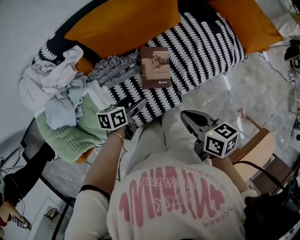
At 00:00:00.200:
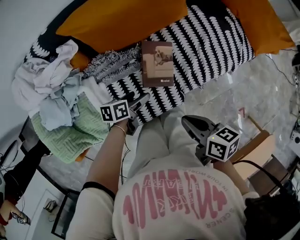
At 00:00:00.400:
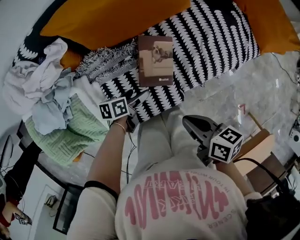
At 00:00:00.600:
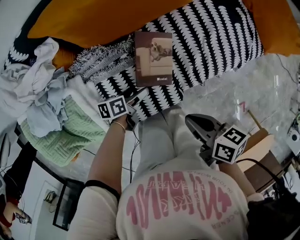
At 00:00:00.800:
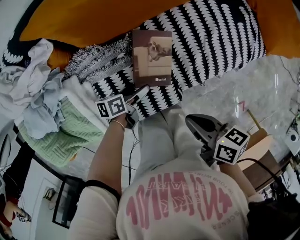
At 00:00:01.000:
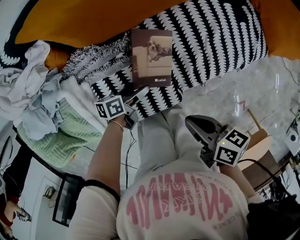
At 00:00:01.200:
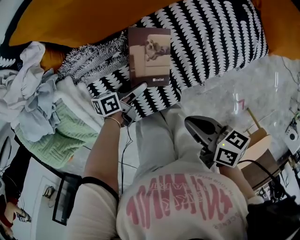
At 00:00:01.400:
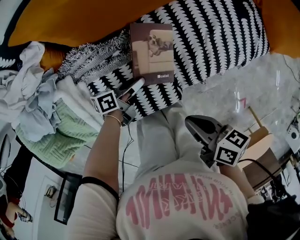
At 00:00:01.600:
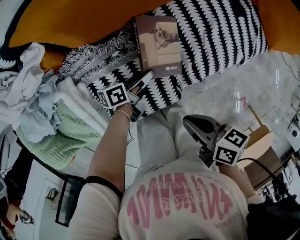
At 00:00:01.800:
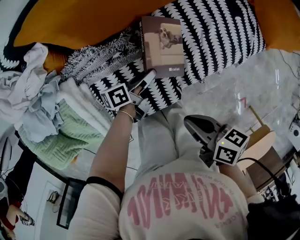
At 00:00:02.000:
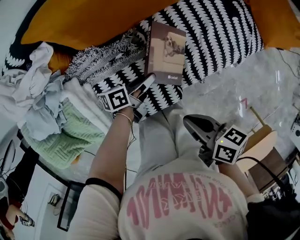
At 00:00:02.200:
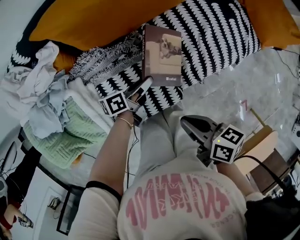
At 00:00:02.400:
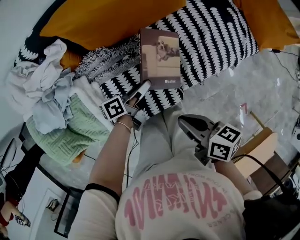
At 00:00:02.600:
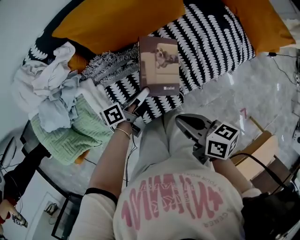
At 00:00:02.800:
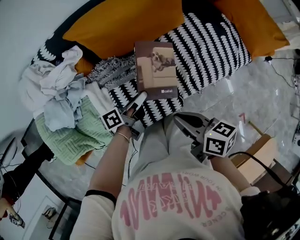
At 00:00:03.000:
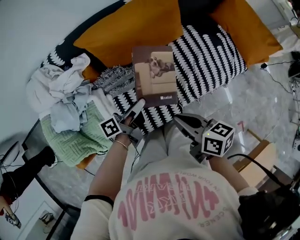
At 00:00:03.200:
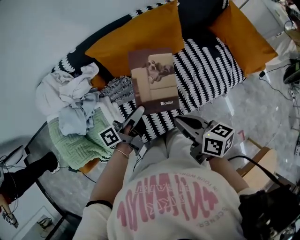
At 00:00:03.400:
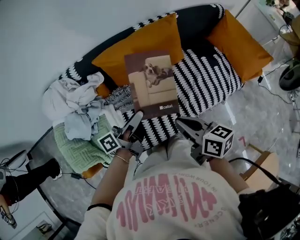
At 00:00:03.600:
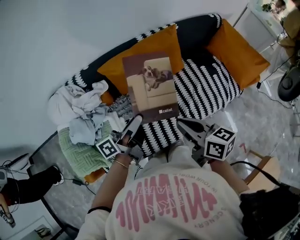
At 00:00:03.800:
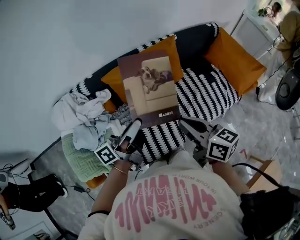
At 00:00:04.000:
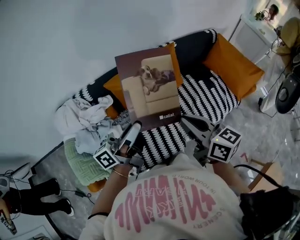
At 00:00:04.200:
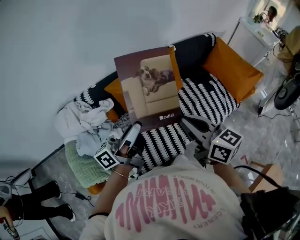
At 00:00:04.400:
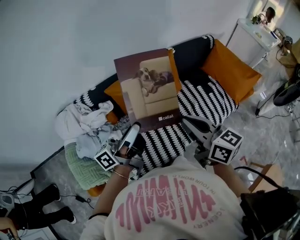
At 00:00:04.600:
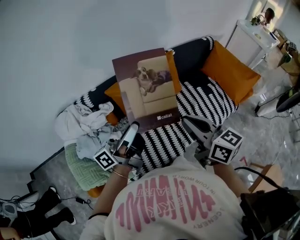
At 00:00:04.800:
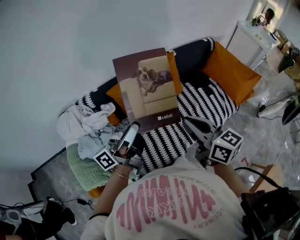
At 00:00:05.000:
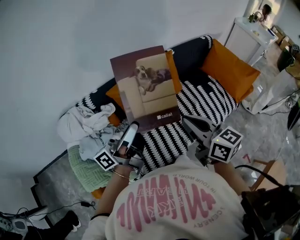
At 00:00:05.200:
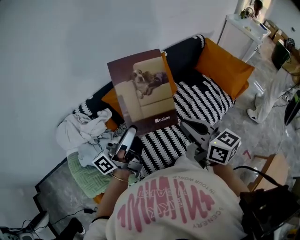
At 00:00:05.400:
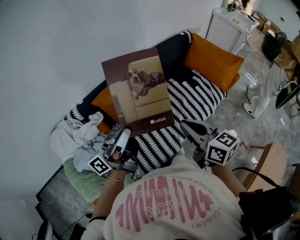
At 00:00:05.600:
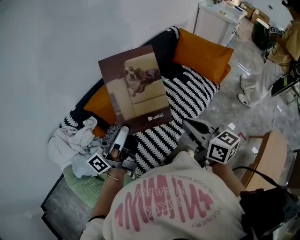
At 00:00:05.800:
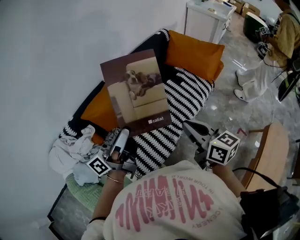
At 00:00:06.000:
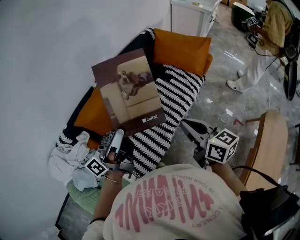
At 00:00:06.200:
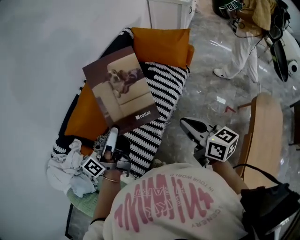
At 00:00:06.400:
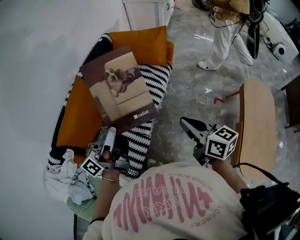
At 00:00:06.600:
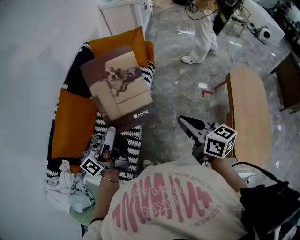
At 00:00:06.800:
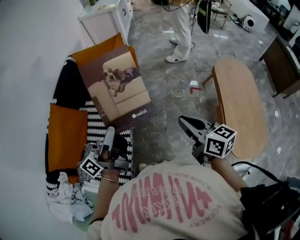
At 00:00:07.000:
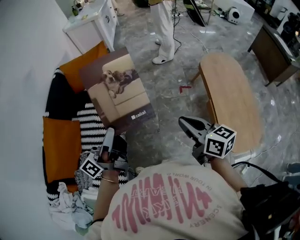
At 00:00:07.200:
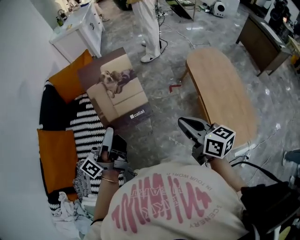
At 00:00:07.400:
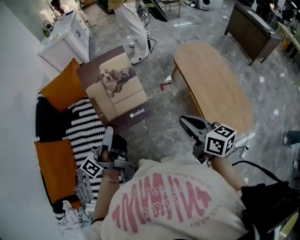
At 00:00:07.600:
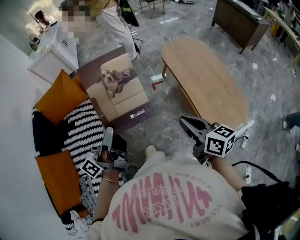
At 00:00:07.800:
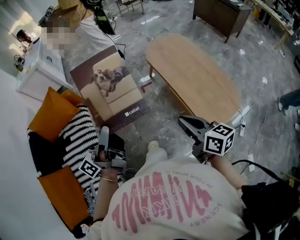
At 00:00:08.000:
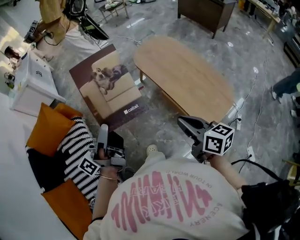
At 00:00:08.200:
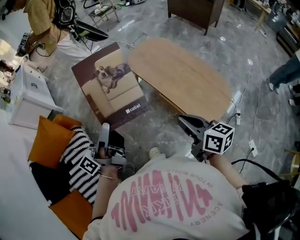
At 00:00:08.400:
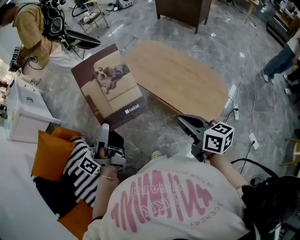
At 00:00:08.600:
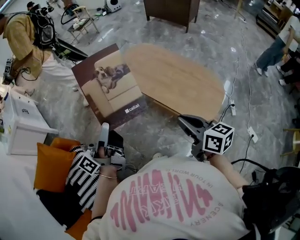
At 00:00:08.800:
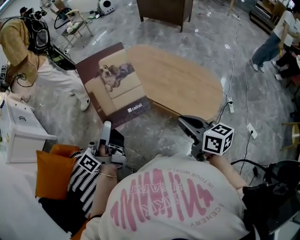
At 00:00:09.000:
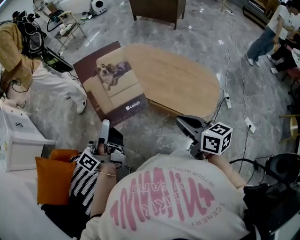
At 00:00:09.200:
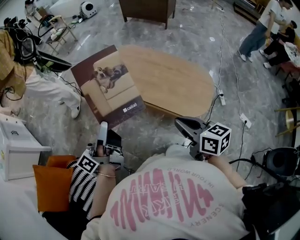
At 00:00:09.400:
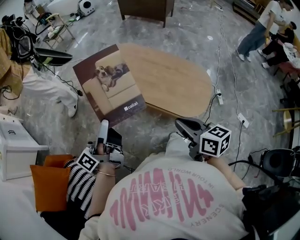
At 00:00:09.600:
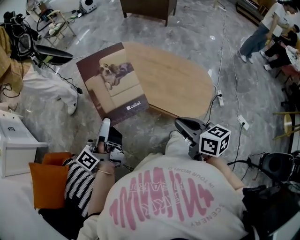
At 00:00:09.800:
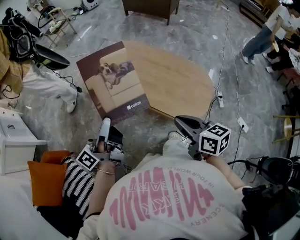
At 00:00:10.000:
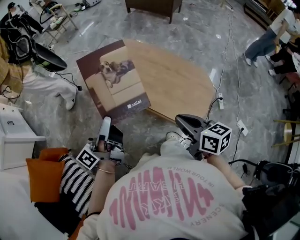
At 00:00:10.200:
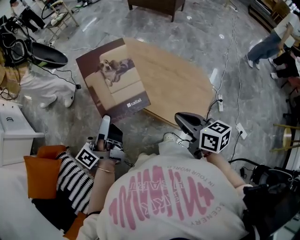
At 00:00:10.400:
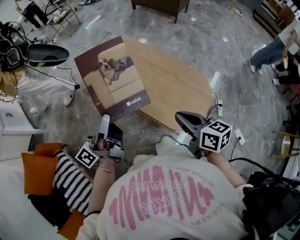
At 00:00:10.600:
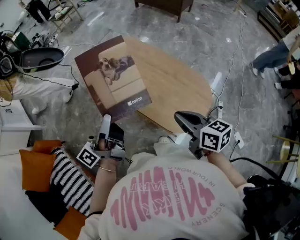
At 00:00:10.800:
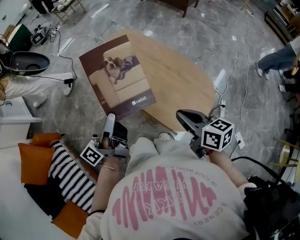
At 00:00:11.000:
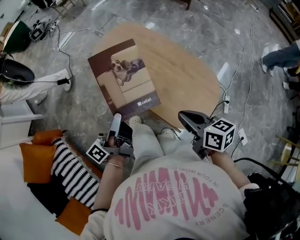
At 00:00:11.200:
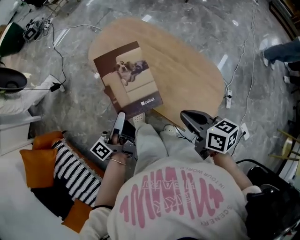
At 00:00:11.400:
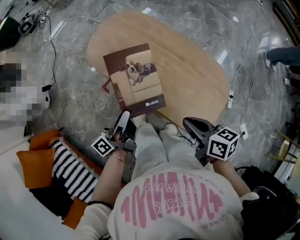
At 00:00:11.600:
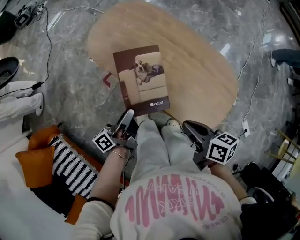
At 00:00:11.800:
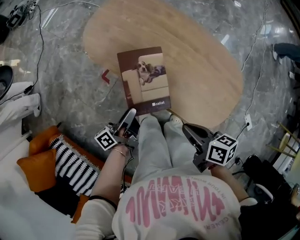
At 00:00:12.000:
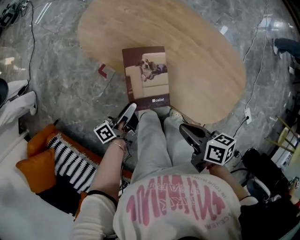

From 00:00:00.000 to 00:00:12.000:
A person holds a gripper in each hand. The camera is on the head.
From 00:00:00.000 to 00:00:01.600: The left gripper shifts roughly 15 cm downward, to the right and forward, turns by some 30 degrees, and closes; the right gripper travels downward by some 10 cm.
From 00:00:01.600 to 00:00:03.000: The right gripper shifts about 10 cm upward, and rotates about 20 degrees. Meanwhile the left gripper heads upward, covering approximately 20 cm, and turns by approximately 20 degrees.
From 00:00:03.000 to 00:00:04.400: The grippers both shift upward by roughly 25 cm. The right gripper rotates about 30 degrees, while the left gripper turns by some 40 degrees.
From 00:00:04.400 to 00:00:06.000: The right gripper ends up roughly 10 cm from where it was, and swivels roughly 40 degrees, while the left gripper travels upward by about 10 cm, and rotates some 30 degrees.
From 00:00:06.000 to 00:00:07.600: The two grippers travel together, roughly 40 cm. The right gripper rotates about 60 degrees; the left gripper turns by roughly 50 degrees.
From 00:00:07.600 to 00:00:09.000: The left gripper shifts by roughly 25 cm, and turns by approximately 40 degrees. The right gripper moves about 10 cm, and swivels about 40 degrees.
From 00:00:09.000 to 00:00:10.400: Both grippers move to the right and forward, roughly 15 cm.
From 00:00:10.400 to 00:00:12.000: The right gripper shifts about 20 cm downward and to the left, and changes its angle by some 30 degrees. Meanwhile the left gripper moves downward and forward, some 30 cm, and changes its angle by approximately 30 degrees.

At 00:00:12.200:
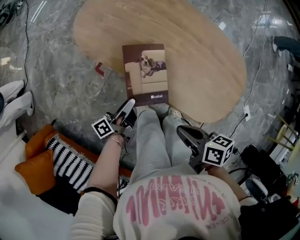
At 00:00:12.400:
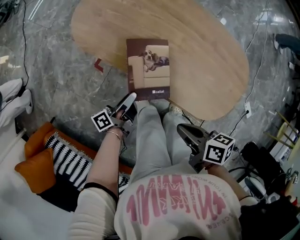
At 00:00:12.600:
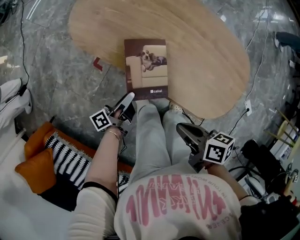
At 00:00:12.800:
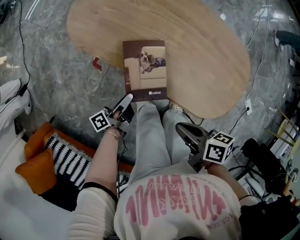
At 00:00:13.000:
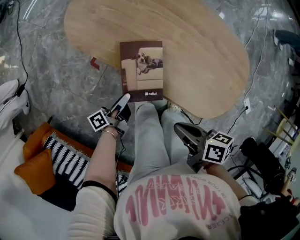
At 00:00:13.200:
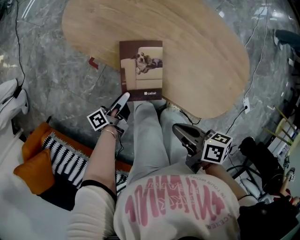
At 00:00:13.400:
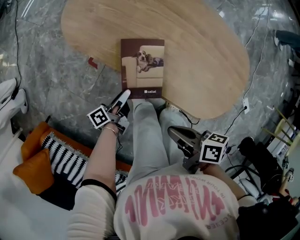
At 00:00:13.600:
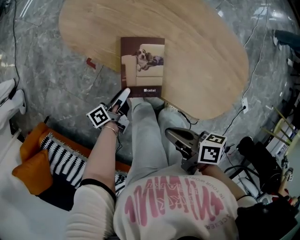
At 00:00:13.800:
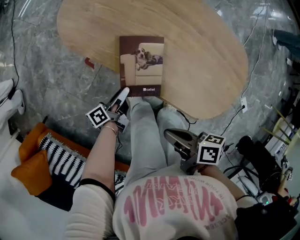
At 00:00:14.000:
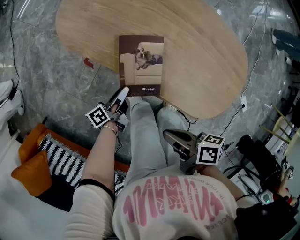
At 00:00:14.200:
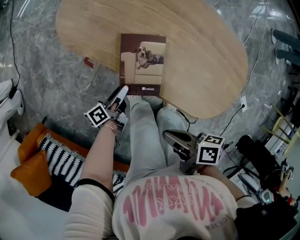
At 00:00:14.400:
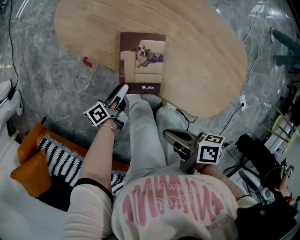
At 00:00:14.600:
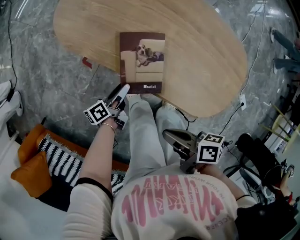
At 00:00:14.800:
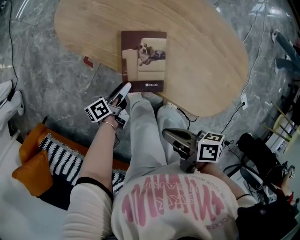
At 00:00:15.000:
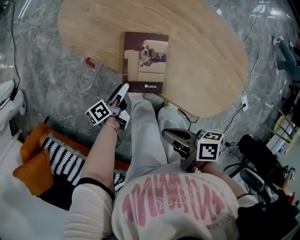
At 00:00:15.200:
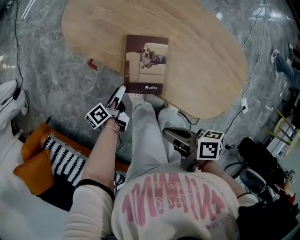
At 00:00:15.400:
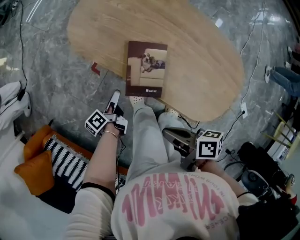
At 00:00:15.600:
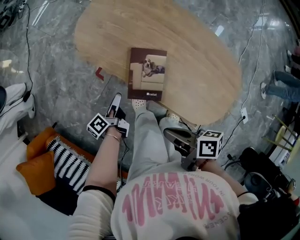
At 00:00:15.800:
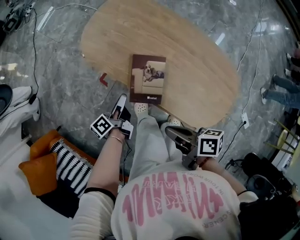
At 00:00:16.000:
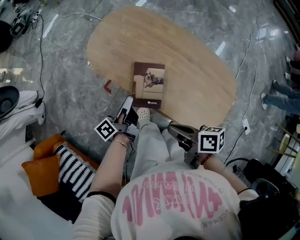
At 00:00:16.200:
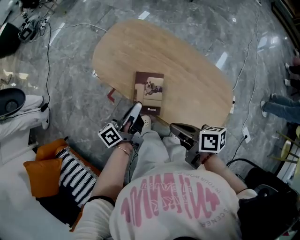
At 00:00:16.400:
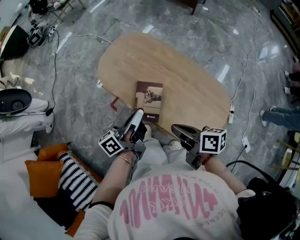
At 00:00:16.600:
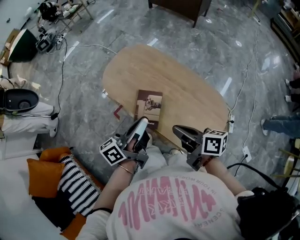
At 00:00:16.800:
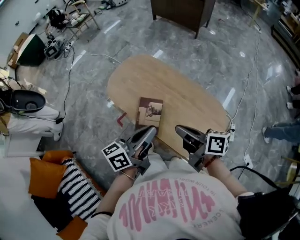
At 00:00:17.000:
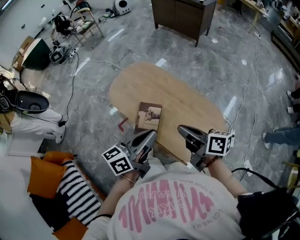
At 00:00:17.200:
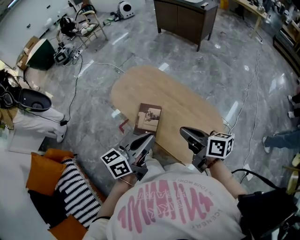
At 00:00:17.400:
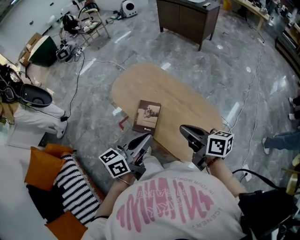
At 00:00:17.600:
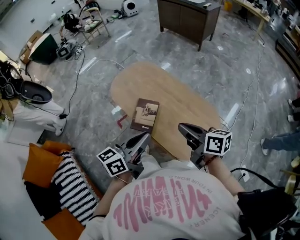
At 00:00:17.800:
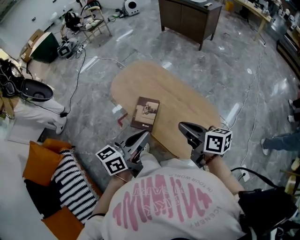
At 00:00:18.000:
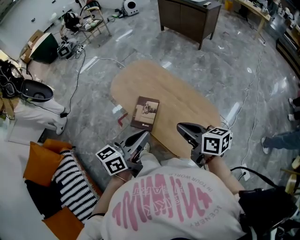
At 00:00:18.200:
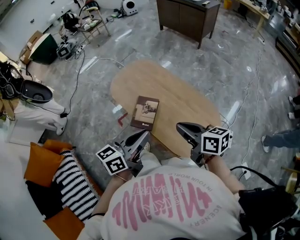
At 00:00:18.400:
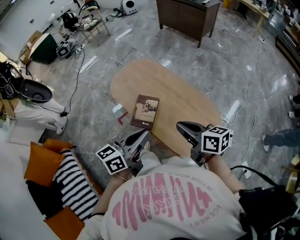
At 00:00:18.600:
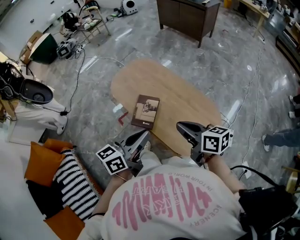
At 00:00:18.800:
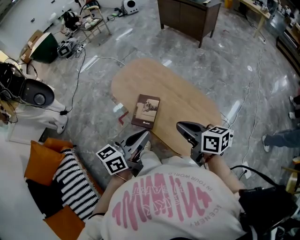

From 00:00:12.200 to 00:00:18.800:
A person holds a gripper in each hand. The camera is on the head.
From 00:00:12.200 to 00:00:13.800: The left gripper moves downward, some 5 cm.
From 00:00:13.800 to 00:00:15.400: The left gripper moves to the left, roughly 5 cm, and rotates about 20 degrees.
From 00:00:15.400 to 00:00:17.200: The left gripper shifts roughly 40 cm upward, to the right and backward, rotates around the line of its fingers by approximately 50 degrees, clockwise from behind, and closes up. Meanwhile the right gripper is displaced to the right and upward by approximately 25 cm, and changes its angle by approximately 40 degrees.
From 00:00:17.200 to 00:00:18.800: There are only small adjustments of the grippers.

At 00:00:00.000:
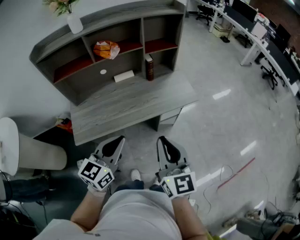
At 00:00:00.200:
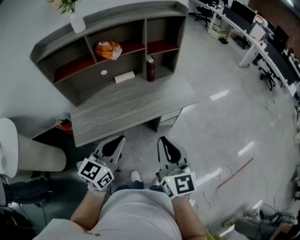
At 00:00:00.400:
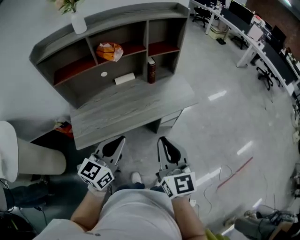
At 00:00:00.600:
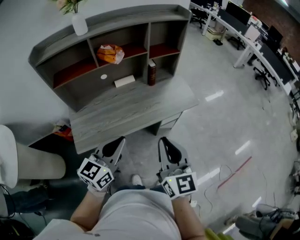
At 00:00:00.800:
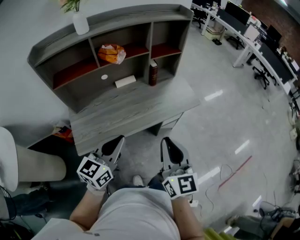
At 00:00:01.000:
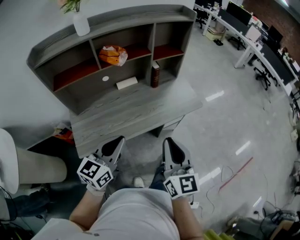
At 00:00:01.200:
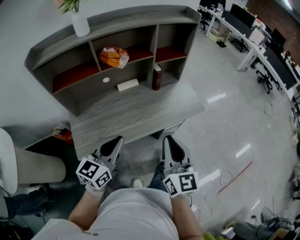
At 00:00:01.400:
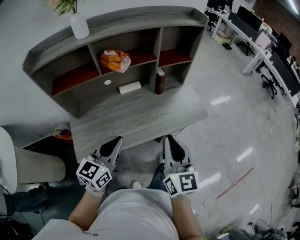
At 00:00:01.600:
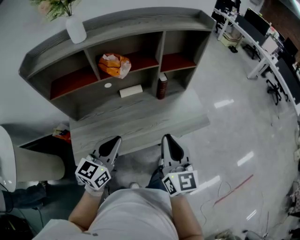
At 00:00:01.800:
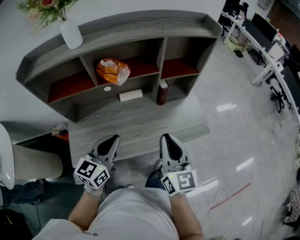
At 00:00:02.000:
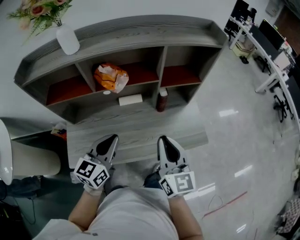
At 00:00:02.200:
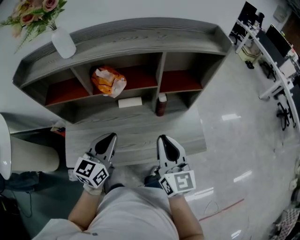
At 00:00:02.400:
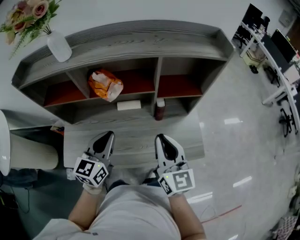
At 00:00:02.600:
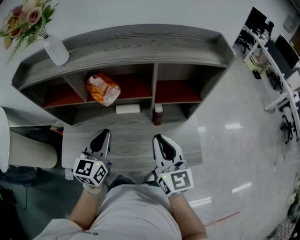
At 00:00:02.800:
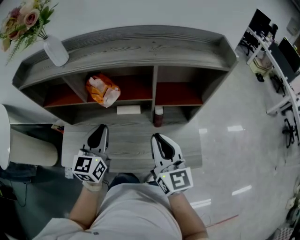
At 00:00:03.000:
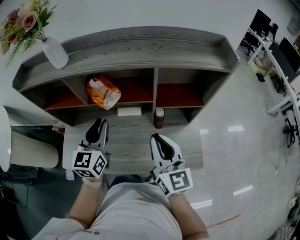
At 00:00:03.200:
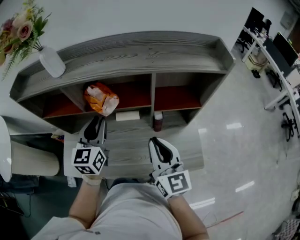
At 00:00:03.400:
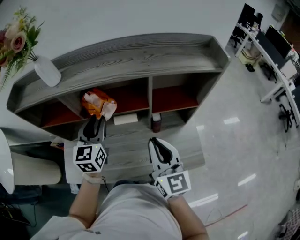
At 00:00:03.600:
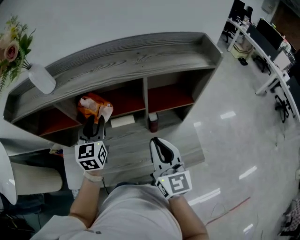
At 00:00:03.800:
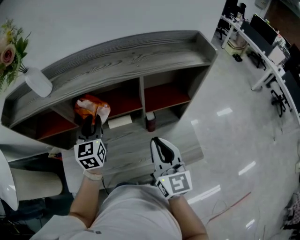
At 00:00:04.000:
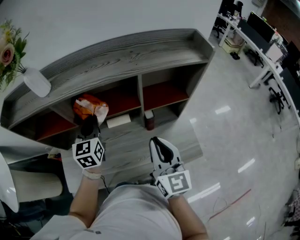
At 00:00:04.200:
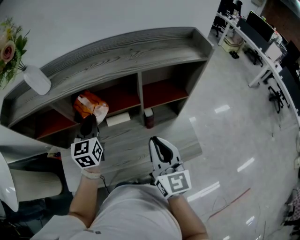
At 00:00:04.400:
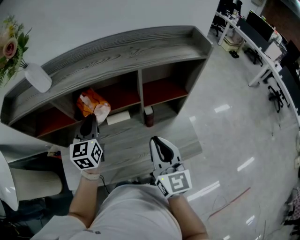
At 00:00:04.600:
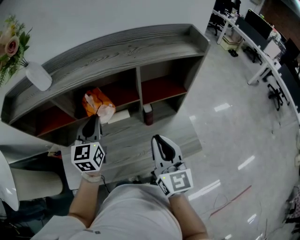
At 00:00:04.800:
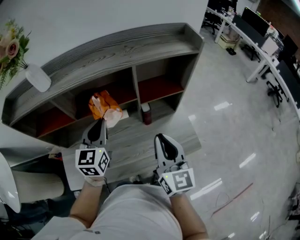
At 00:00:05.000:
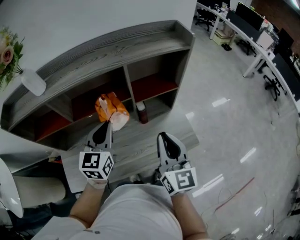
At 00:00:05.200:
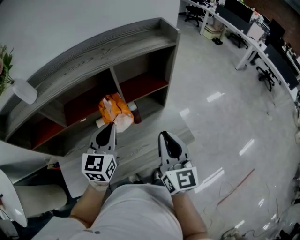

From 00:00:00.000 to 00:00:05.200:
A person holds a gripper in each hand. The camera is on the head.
From 00:00:00.000 to 00:00:01.800: The right gripper is displaced forward by approximately 25 cm. Meanwhile the left gripper goes roughly 25 cm forward and to the left.
From 00:00:01.800 to 00:00:03.400: The left gripper moves approximately 25 cm, swivels roughly 30 degrees, and opens its fingers. The right gripper changes place by approximately 20 cm.
From 00:00:03.400 to 00:00:05.200: The left gripper shifts by about 15 cm, changes its angle by about 30 degrees, and closes. The right gripper ends up roughly 10 cm from where it was, and rotates roughly 20 degrees.
